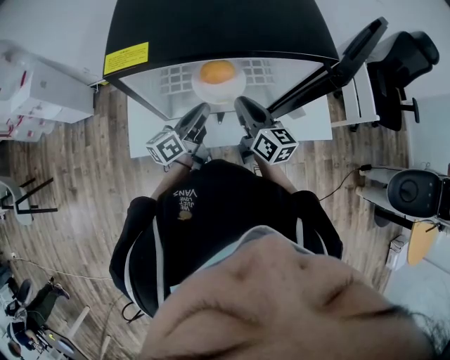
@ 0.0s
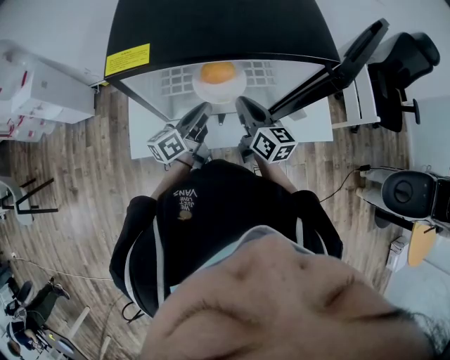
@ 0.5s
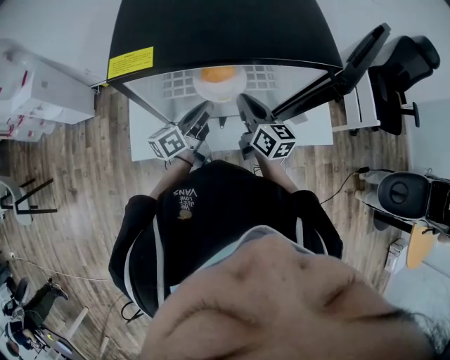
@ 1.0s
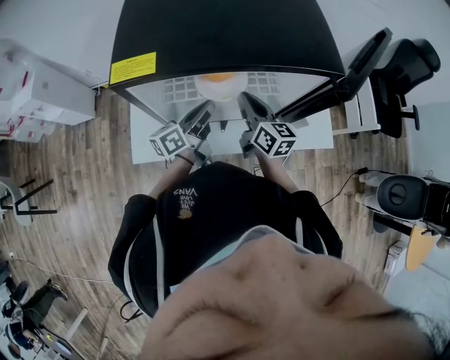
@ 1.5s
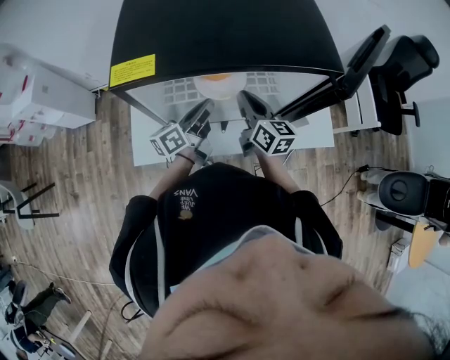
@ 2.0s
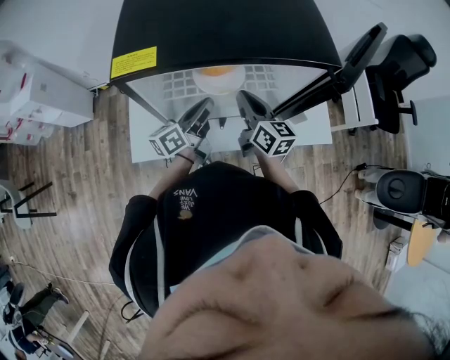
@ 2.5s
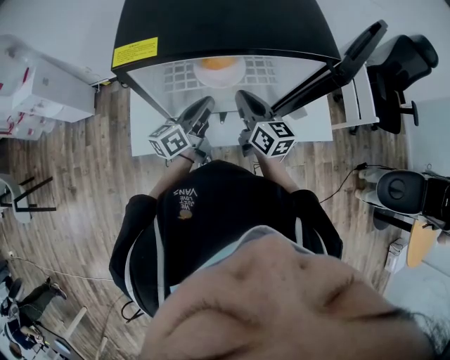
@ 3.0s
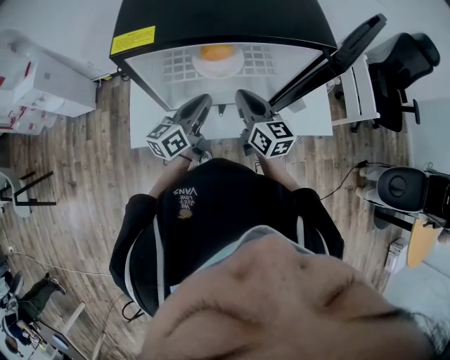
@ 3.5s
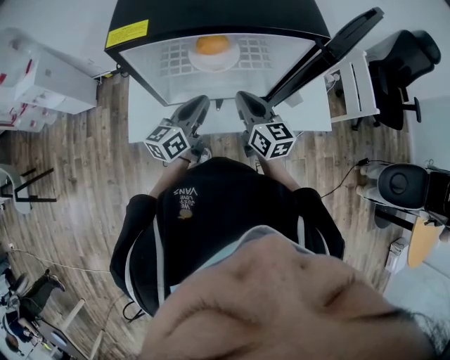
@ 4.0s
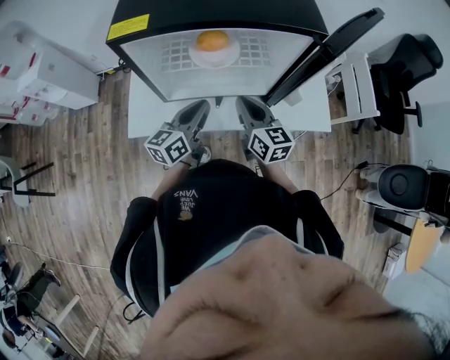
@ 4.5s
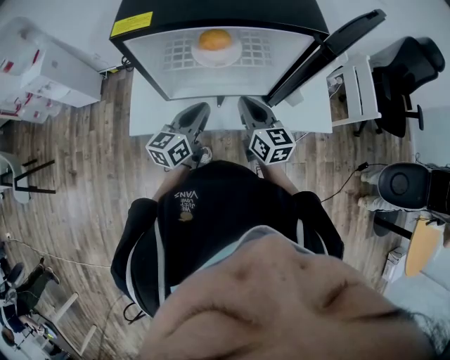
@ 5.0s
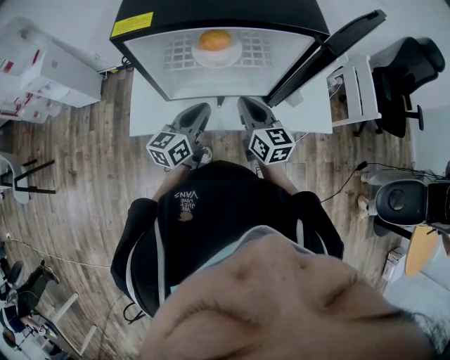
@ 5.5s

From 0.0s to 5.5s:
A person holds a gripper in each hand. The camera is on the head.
From 0.0s to 2.0s: There are only small adjustments of the grippers.
From 2.0s to 3.5s: The grippers both shift backward by some 5 cm.
From 3.5s to 5.5s: The left gripper is displaced backward by some 5 cm; the right gripper ends up about 5 cm from where it was.

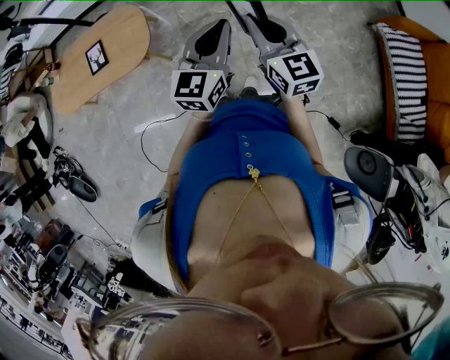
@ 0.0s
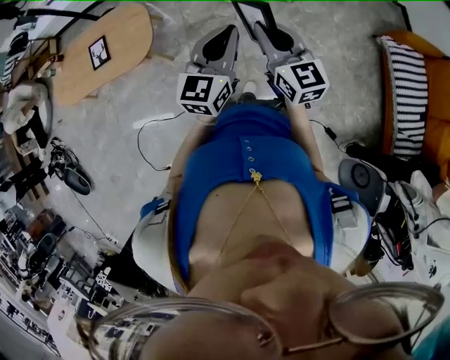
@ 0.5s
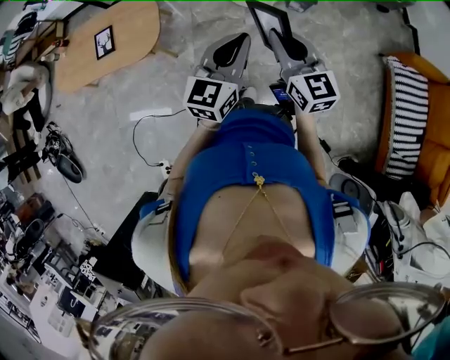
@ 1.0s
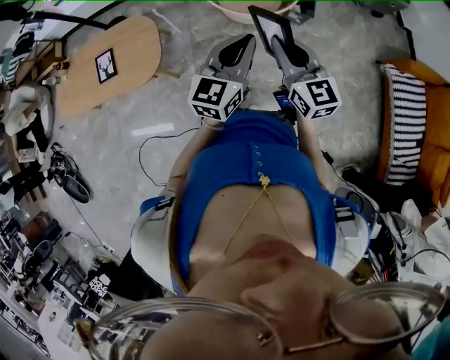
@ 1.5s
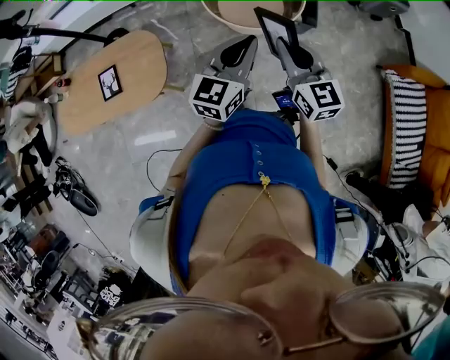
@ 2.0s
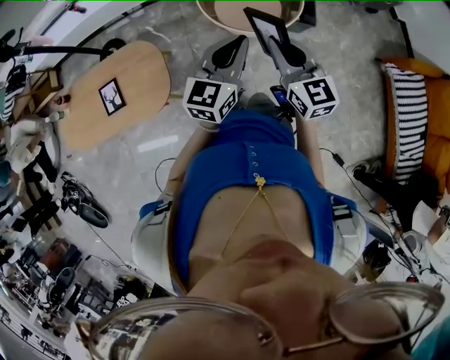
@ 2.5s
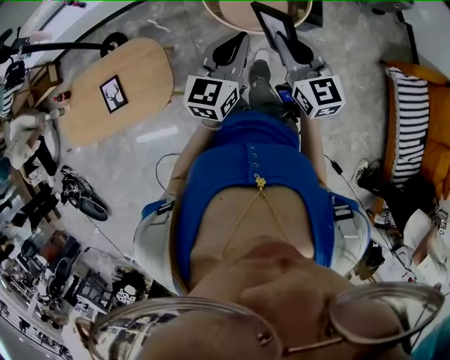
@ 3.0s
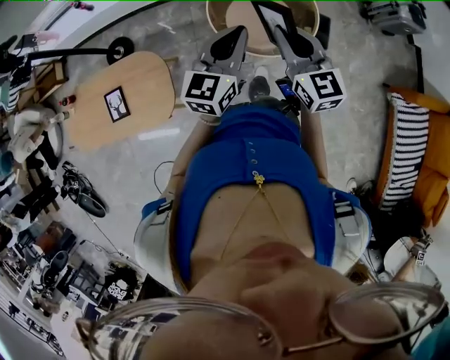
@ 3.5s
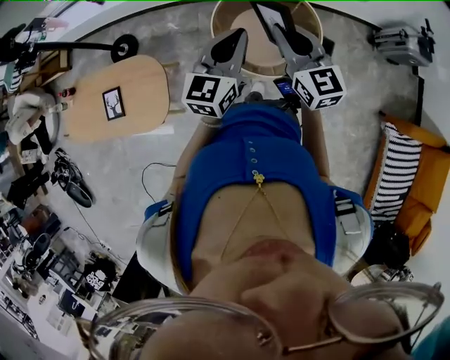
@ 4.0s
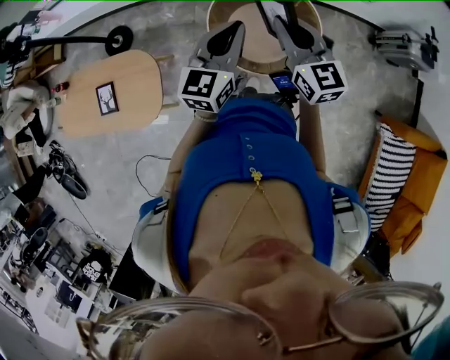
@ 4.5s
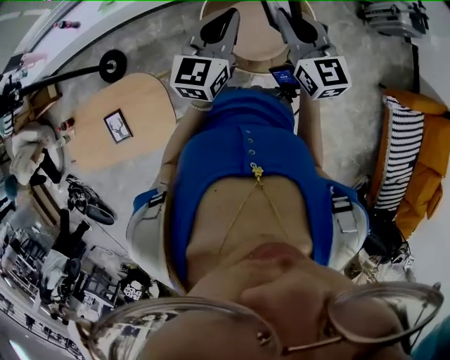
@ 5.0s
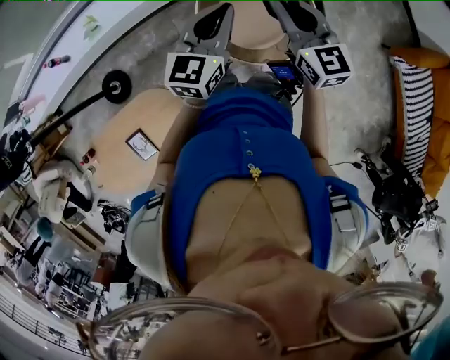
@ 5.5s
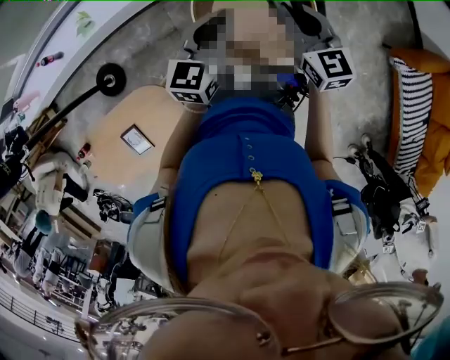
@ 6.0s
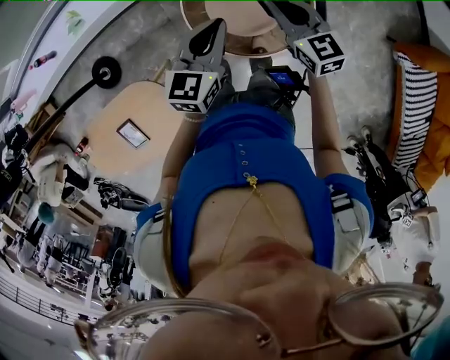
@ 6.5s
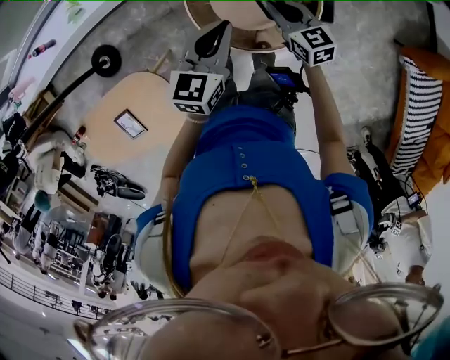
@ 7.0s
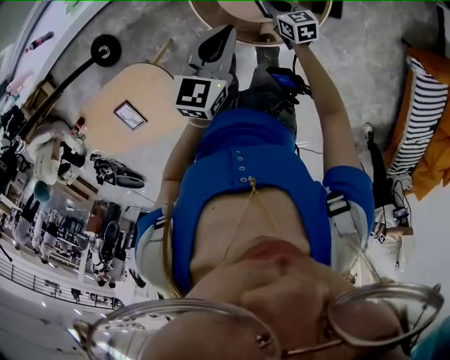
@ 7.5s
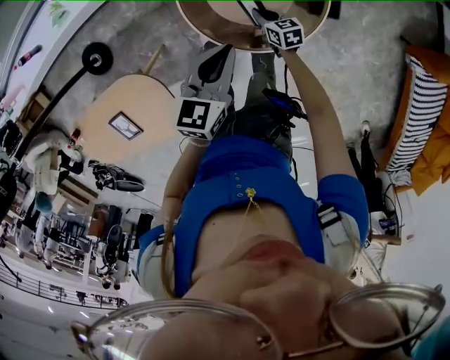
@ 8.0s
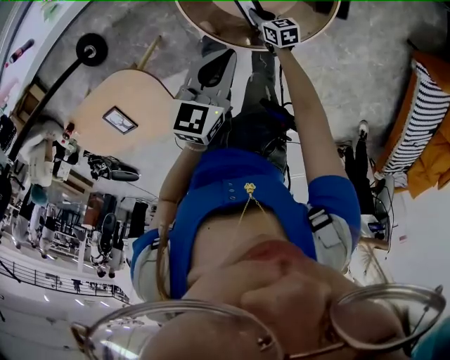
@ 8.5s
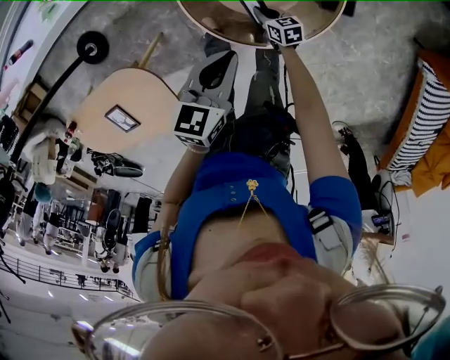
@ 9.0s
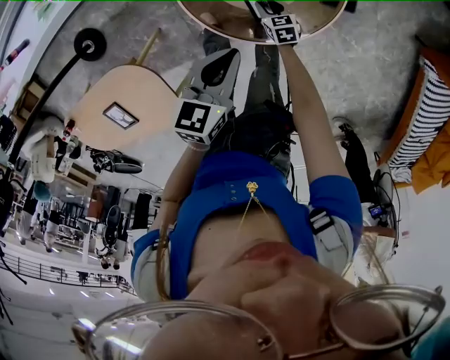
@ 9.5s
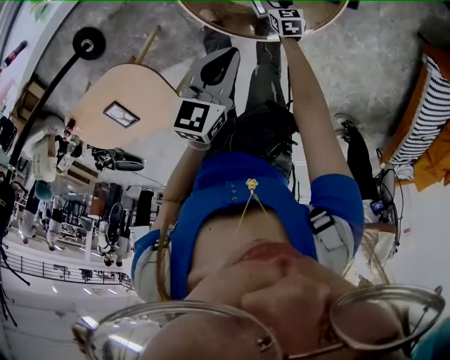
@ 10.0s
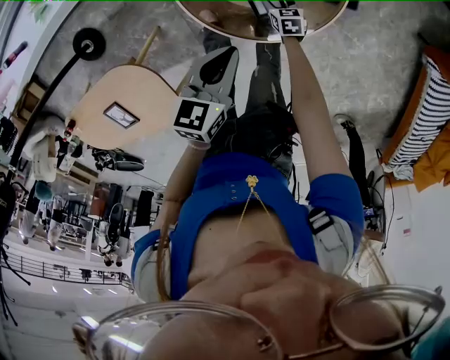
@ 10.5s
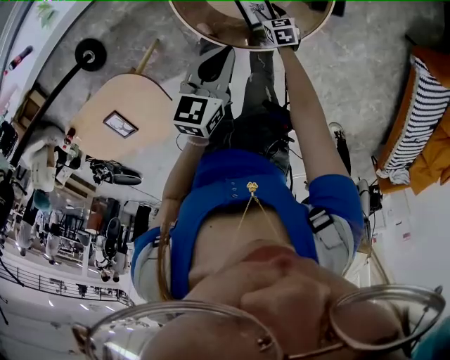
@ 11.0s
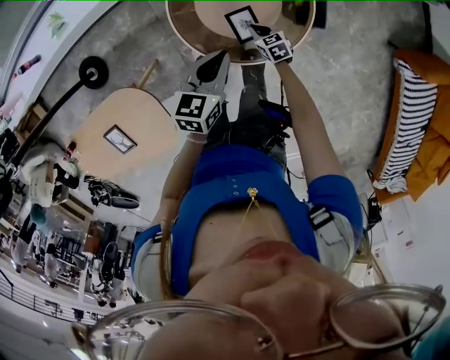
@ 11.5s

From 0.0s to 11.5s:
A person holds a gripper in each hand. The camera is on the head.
From 0.0s to 2.0s: Both grippers travel together forward, roughly 20 cm.
From 2.0s to 4.0s: The two grippers go roughly 35 cm forward.
From 4.0s to 6.0s: The left gripper ends up approximately 25 cm from where it was, and rotates some 20 degrees; the right gripper changes place by some 20 cm, and changes its angle by roughly 20 degrees.
From 6.0s to 7.5s: The left gripper shifts about 10 cm downward. The right gripper is displaced downward by some 35 cm, and changes its angle by about 30 degrees.
From 7.5s to 9.5s: The right gripper is displaced downward by roughly 20 cm, and opens its fingers. Meanwhile the left gripper goes about 15 cm downward.
From 9.5s to 11.5s: The left gripper shifts roughly 5 cm upward. Meanwhile the right gripper is displaced upward by about 10 cm, and closes up.

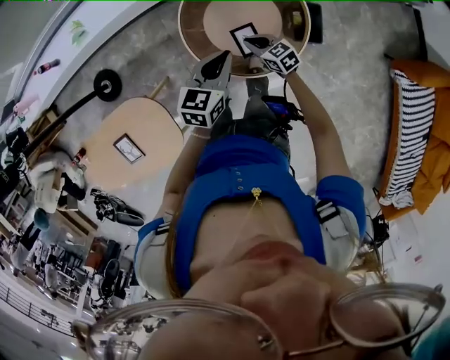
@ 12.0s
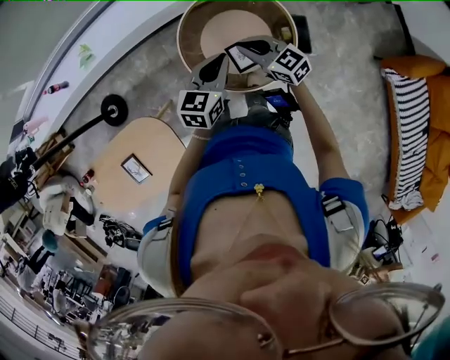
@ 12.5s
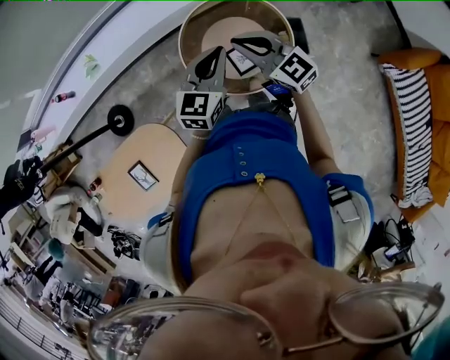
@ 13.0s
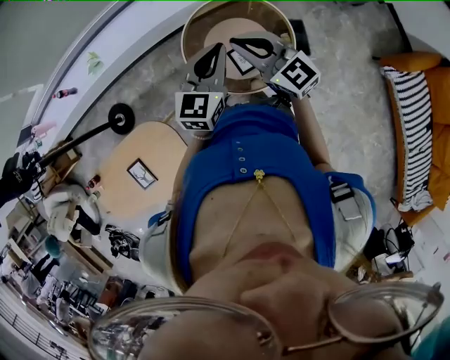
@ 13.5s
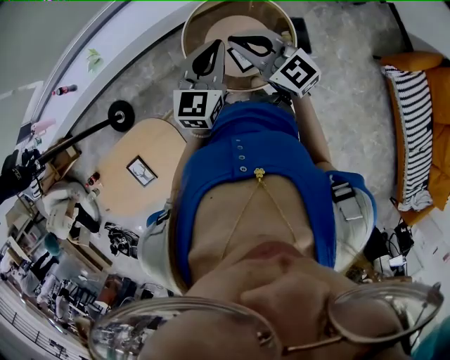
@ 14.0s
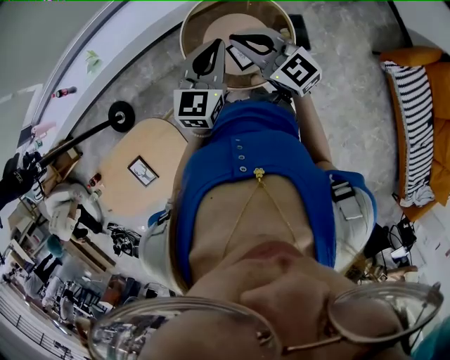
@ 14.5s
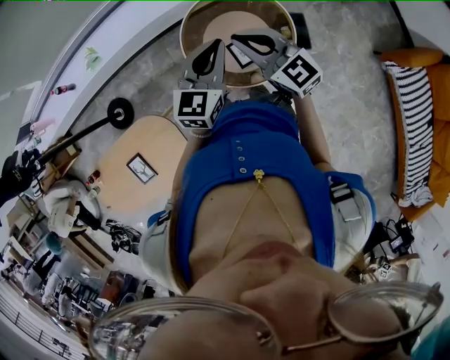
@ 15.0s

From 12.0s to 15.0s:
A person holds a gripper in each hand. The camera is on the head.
From 12.0s to 13.5s: The left gripper moves upward, approximately 15 cm, and changes its angle by approximately 20 degrees. Meanwhile the right gripper moves upward, roughly 35 cm, and tips its fingers upward by roughly 30 degrees.
From 13.5s to 15.0s: Neither gripper changes place.

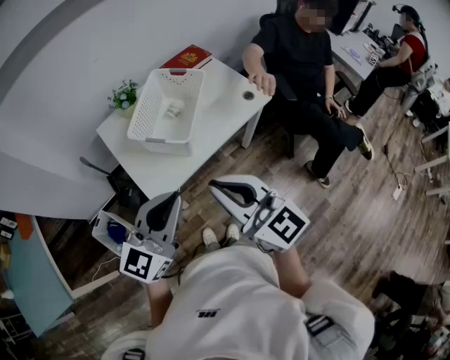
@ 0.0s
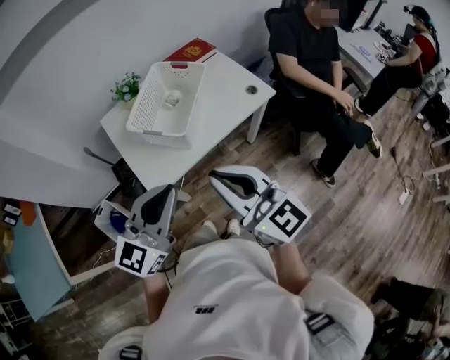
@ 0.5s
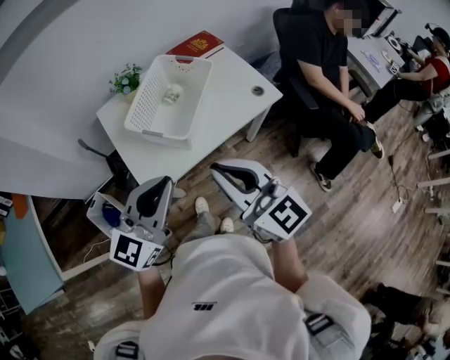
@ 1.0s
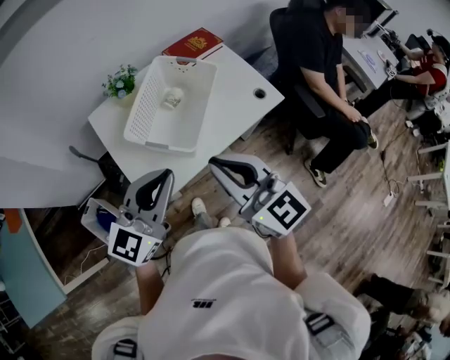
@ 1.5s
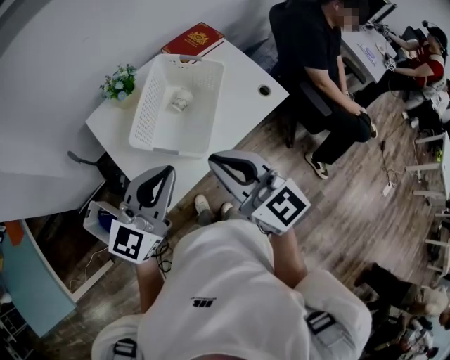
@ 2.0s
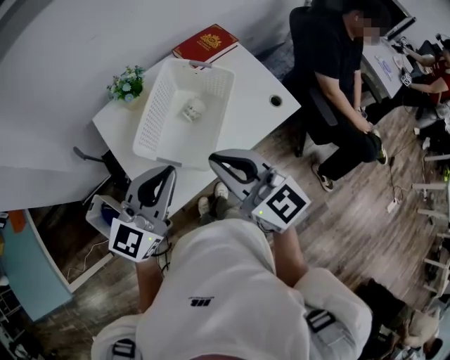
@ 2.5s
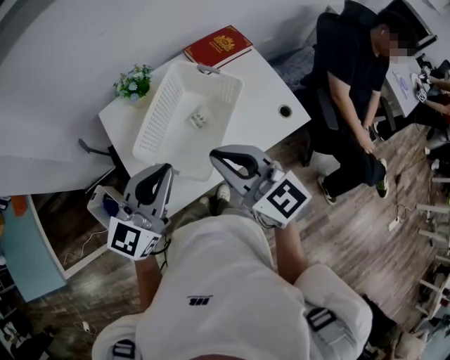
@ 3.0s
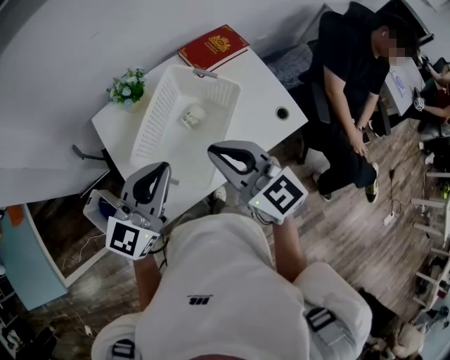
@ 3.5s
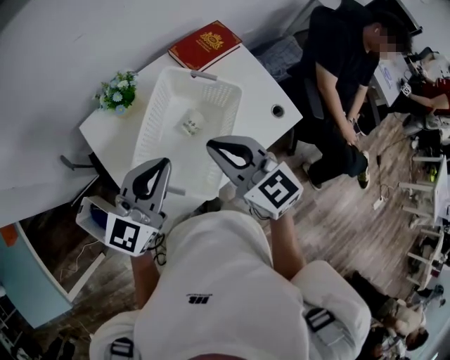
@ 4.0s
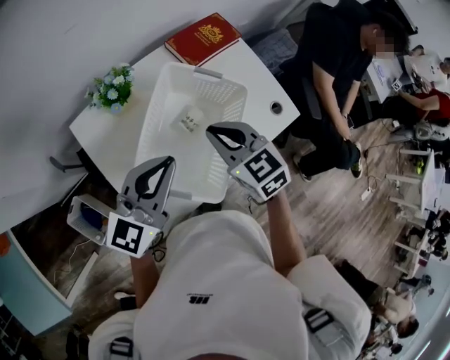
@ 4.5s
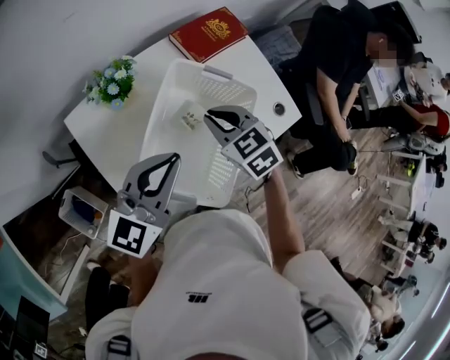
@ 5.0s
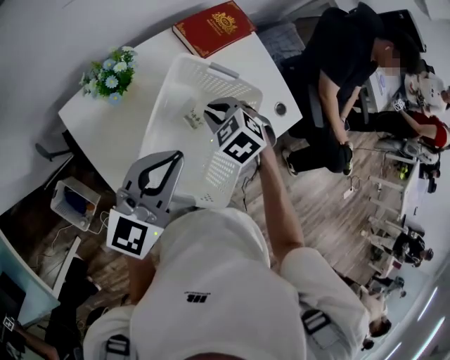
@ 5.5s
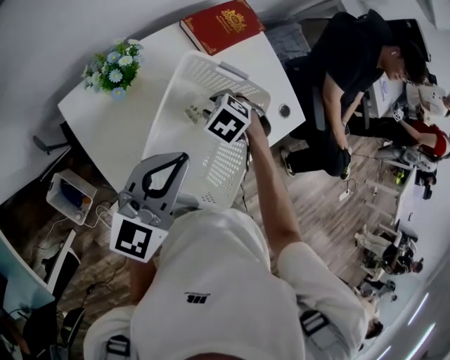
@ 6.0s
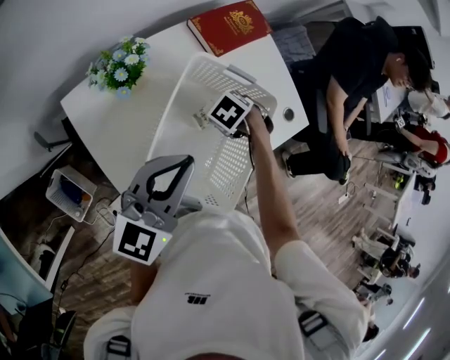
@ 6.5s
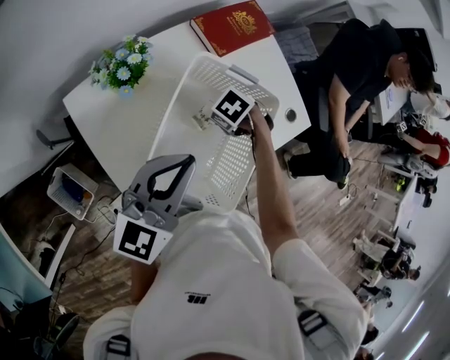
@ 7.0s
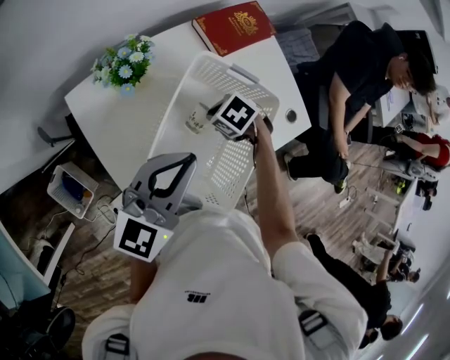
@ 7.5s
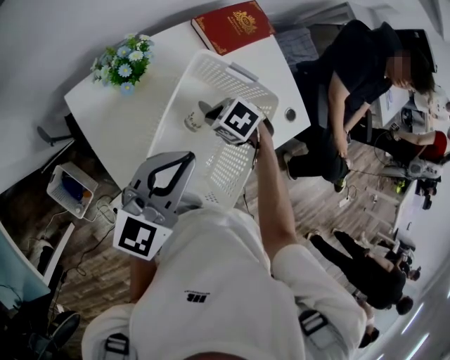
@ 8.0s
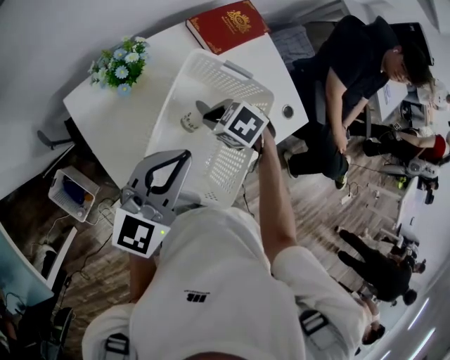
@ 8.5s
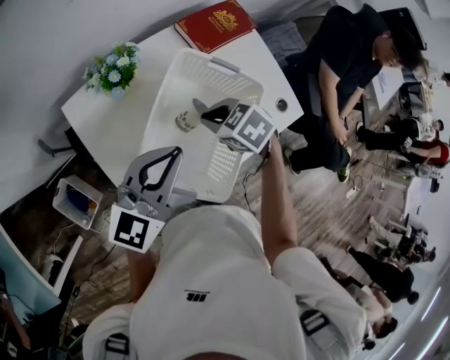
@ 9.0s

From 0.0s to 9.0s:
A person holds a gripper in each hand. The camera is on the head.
From 0.0s to 2.0s: Both grippers travel together forward, approximately 20 cm.
From 2.0s to 4.5s: The left gripper moves forward, about 20 cm, while the right gripper travels forward and downward by roughly 25 cm, and angles its fingers downward, by roughly 30 degrees.
From 4.5s to 7.0s: The right gripper is displaced downward by roughly 20 cm, points its fingers some 50 degrees further downward, and opens its fingers.
From 7.0s to 9.0s: The right gripper shifts about 10 cm upward, turns by some 20 degrees, and closes.
